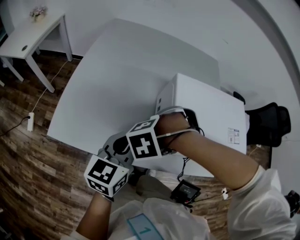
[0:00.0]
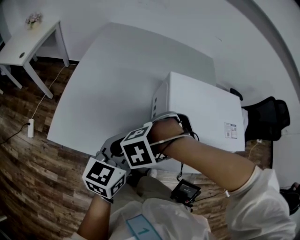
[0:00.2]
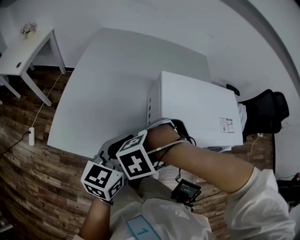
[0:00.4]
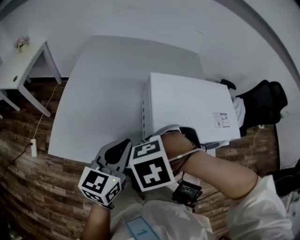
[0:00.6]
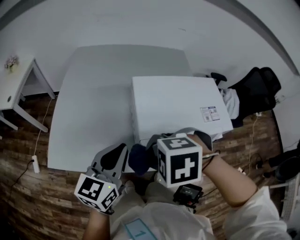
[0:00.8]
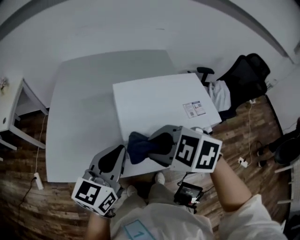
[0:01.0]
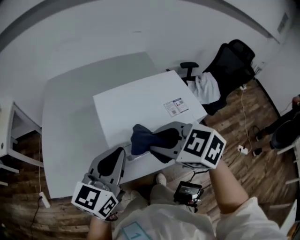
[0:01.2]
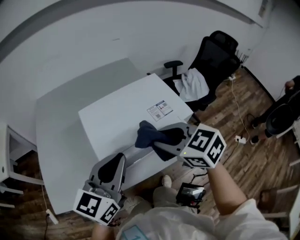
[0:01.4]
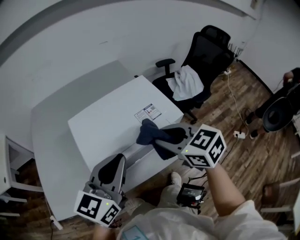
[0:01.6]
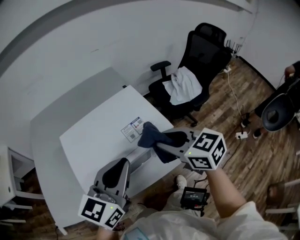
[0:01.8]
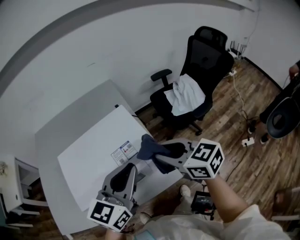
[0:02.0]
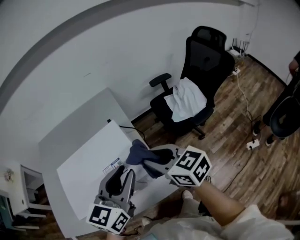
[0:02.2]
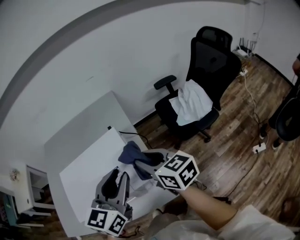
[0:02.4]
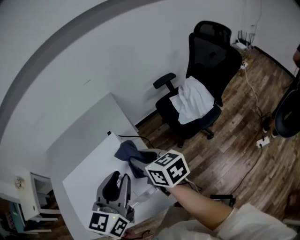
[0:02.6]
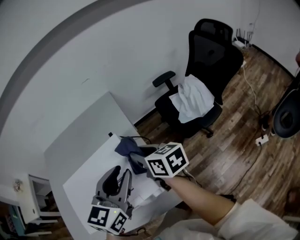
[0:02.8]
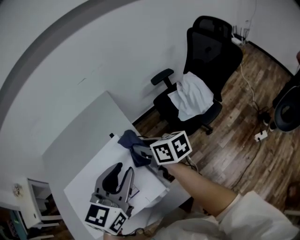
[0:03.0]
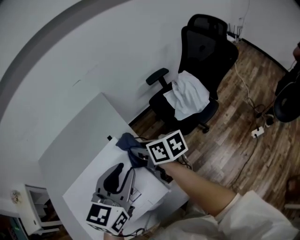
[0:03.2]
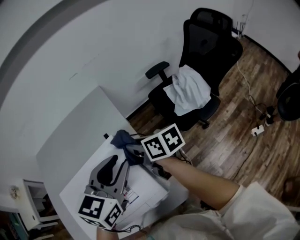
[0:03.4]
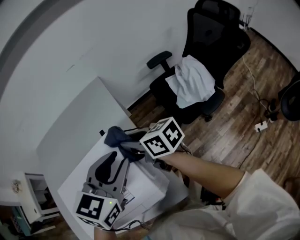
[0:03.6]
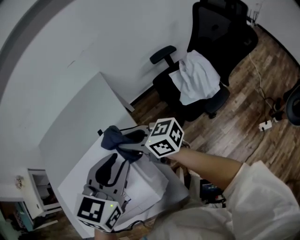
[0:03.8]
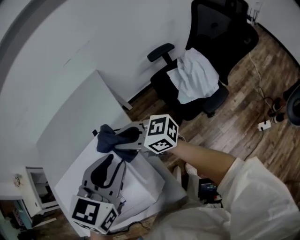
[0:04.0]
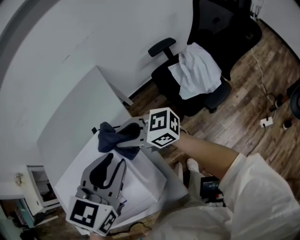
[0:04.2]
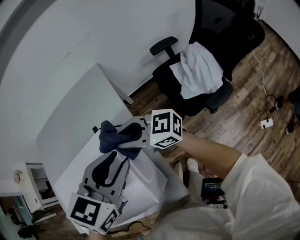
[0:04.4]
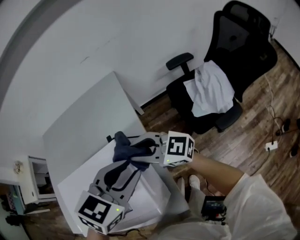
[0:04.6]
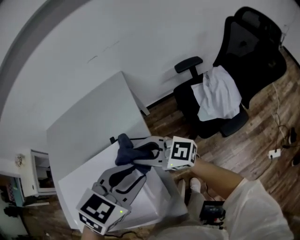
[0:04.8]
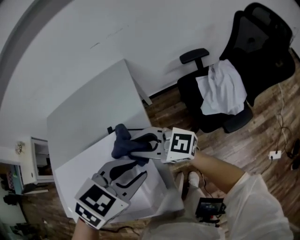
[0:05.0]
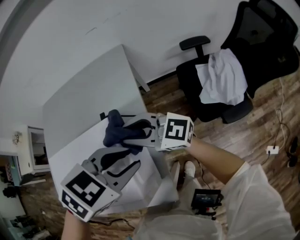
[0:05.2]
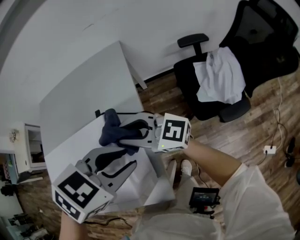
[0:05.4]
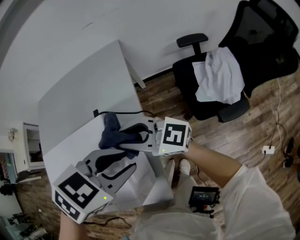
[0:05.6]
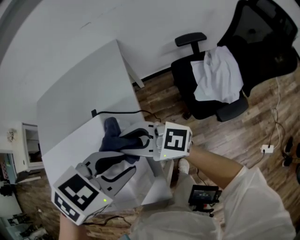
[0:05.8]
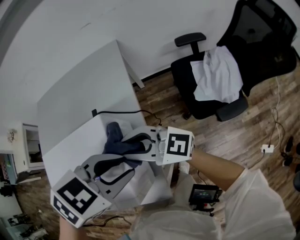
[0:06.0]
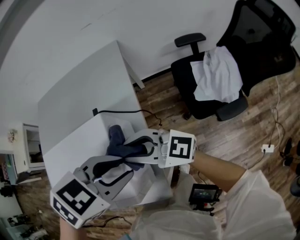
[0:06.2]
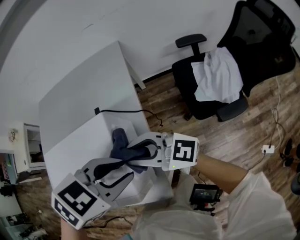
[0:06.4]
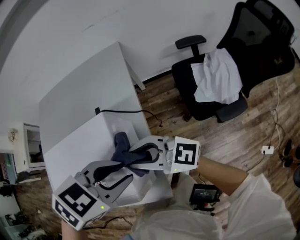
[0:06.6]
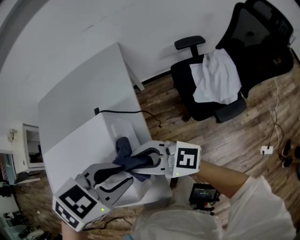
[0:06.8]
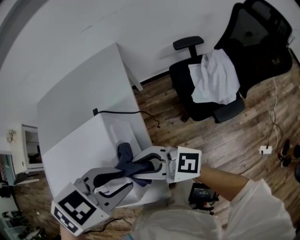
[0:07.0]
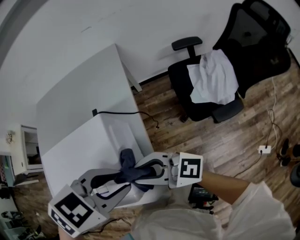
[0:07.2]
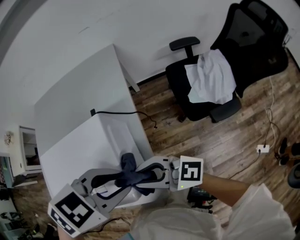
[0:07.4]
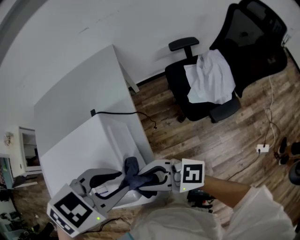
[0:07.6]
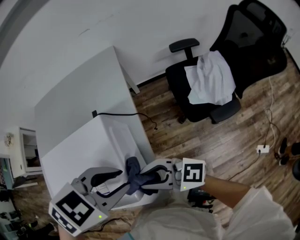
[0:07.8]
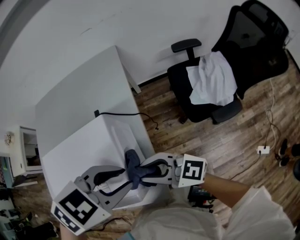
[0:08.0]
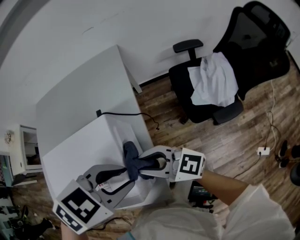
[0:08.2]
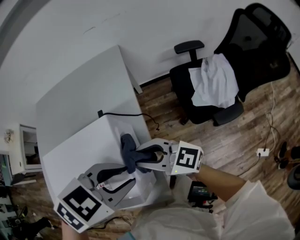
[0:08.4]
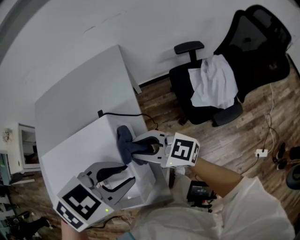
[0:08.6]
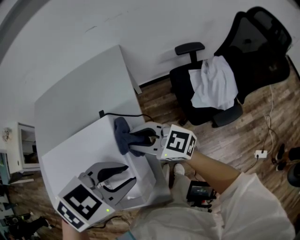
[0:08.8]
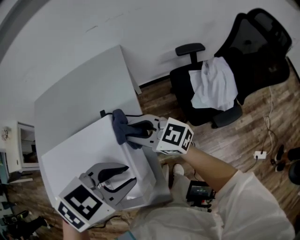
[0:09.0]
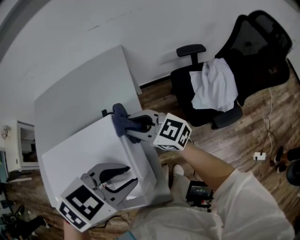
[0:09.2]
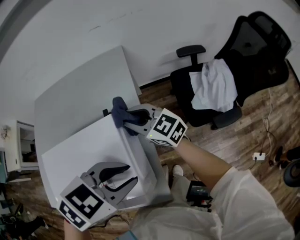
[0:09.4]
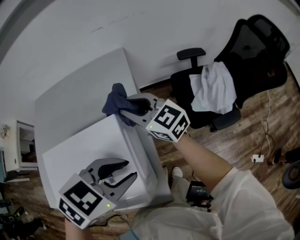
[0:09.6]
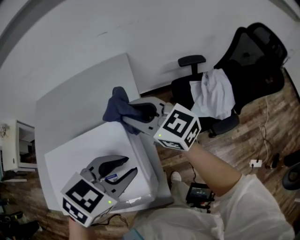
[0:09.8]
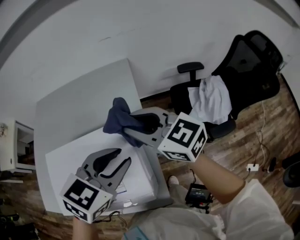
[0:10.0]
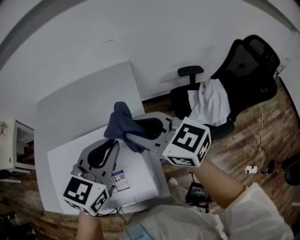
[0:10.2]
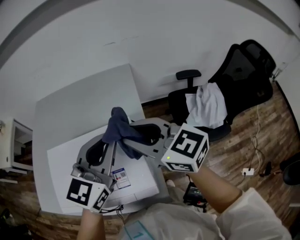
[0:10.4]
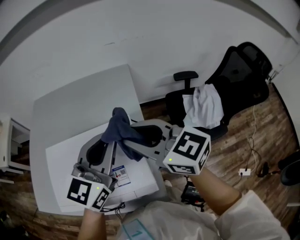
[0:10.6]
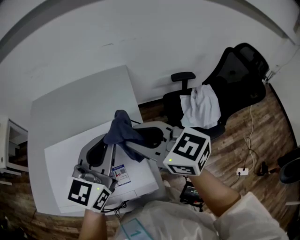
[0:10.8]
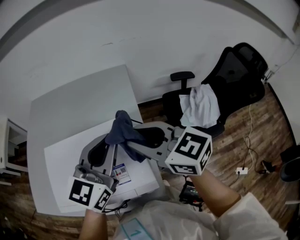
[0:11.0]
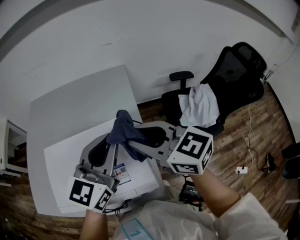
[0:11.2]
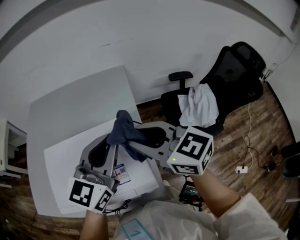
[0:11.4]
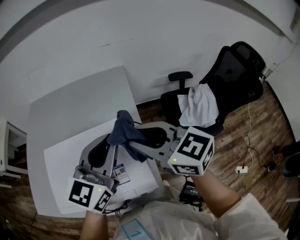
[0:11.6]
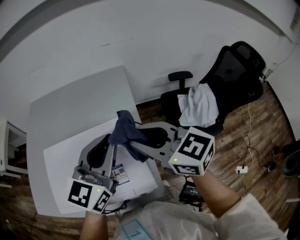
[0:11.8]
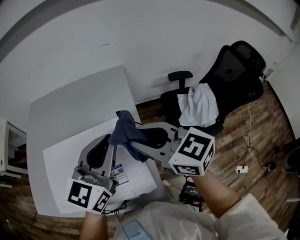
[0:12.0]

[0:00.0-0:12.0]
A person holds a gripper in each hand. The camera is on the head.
0:00.0 to 0:01.6: The right gripper moves approximately 35 cm, and tips its fingers upward by roughly 40 degrees; the left gripper shifts by some 25 cm, and changes its angle by roughly 30 degrees.
0:01.6 to 0:03.0: The left gripper travels to the right and forward by approximately 30 cm, and opens its fingers. The right gripper moves forward and to the right, some 30 cm, and rotates about 40 degrees.
0:03.0 to 0:04.4: The right gripper swivels about 50 degrees, while the left gripper heads downward, forward and to the right, covering approximately 10 cm.
0:04.4 to 0:06.0: The right gripper moves roughly 5 cm. Meanwhile the left gripper shifts by approximately 5 cm, and swivels approximately 30 degrees.
0:06.0 to 0:07.6: The right gripper ends up approximately 10 cm from where it was. The left gripper shifts by roughly 5 cm.
0:07.6 to 0:09.0: The right gripper ends up approximately 20 cm from where it was, and changes its angle by roughly 20 degrees.
0:09.0 to 0:10.4: The right gripper moves upward, approximately 15 cm, while the left gripper shifts by approximately 15 cm, angles its fingers upward, by about 50 degrees, and closes its fingers.
0:10.4 to 0:12.0: The grippers move only a little.

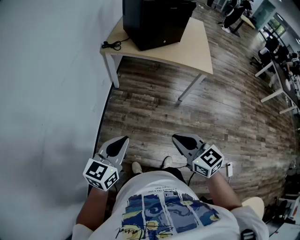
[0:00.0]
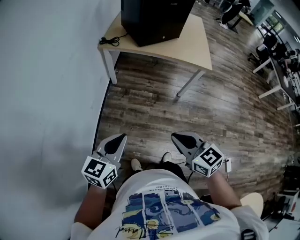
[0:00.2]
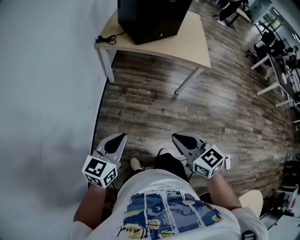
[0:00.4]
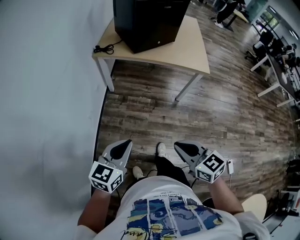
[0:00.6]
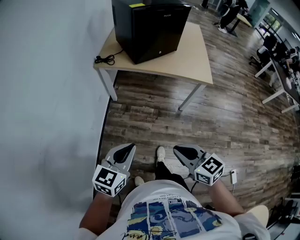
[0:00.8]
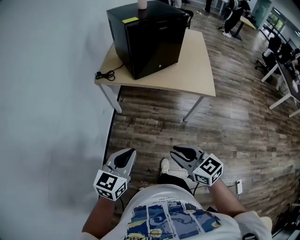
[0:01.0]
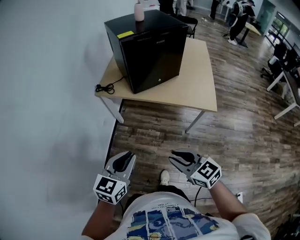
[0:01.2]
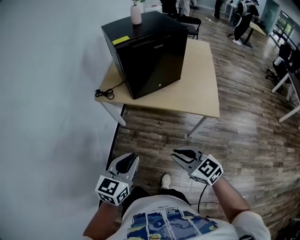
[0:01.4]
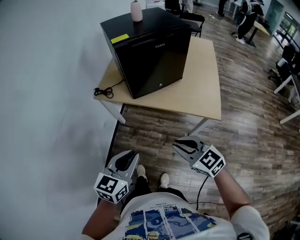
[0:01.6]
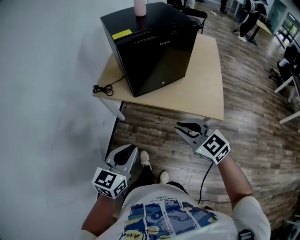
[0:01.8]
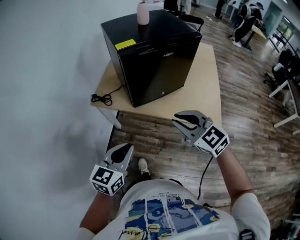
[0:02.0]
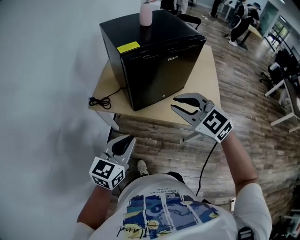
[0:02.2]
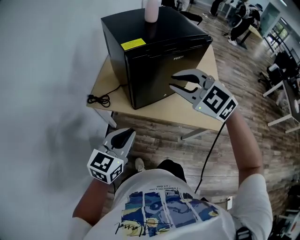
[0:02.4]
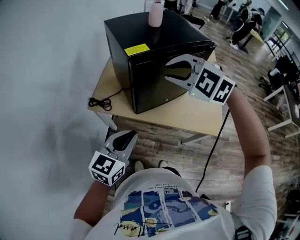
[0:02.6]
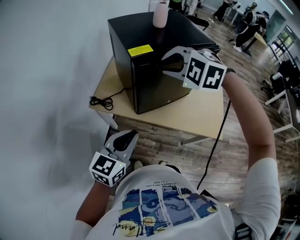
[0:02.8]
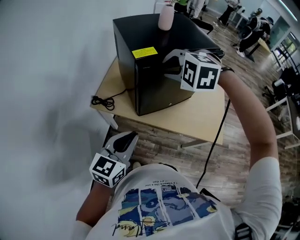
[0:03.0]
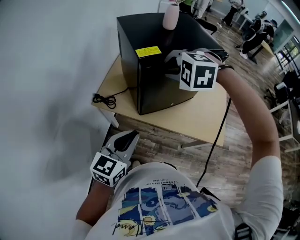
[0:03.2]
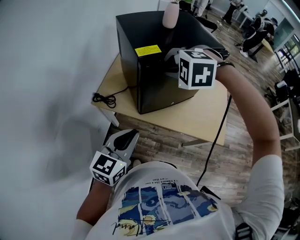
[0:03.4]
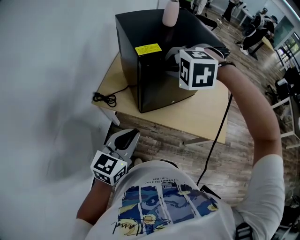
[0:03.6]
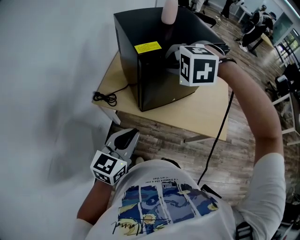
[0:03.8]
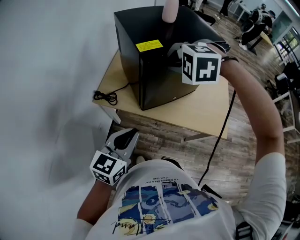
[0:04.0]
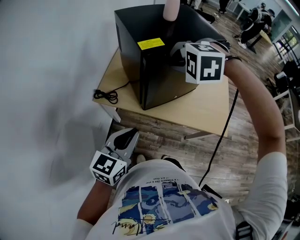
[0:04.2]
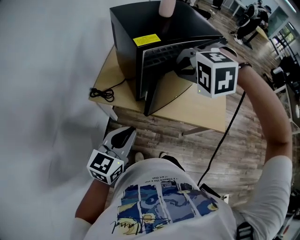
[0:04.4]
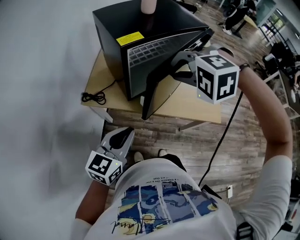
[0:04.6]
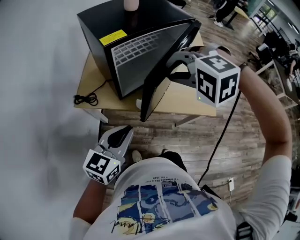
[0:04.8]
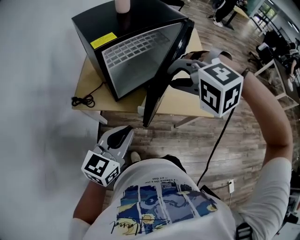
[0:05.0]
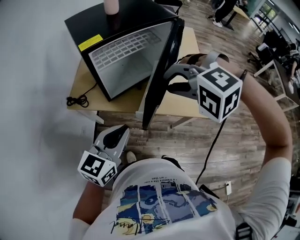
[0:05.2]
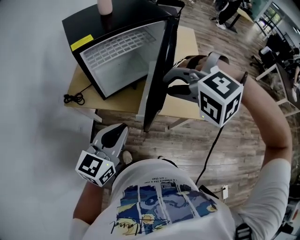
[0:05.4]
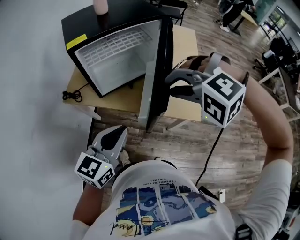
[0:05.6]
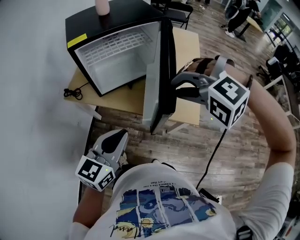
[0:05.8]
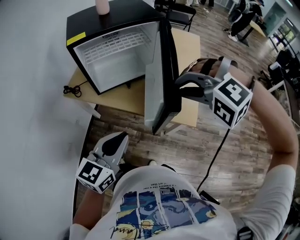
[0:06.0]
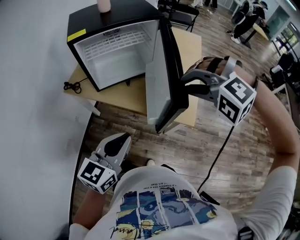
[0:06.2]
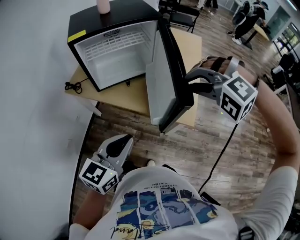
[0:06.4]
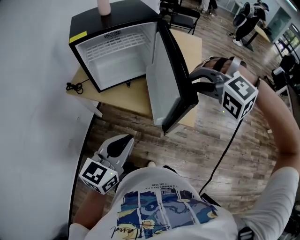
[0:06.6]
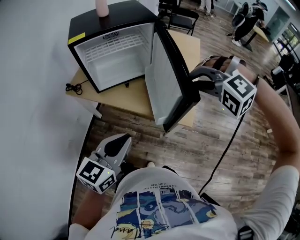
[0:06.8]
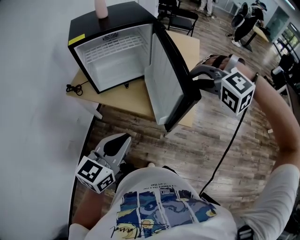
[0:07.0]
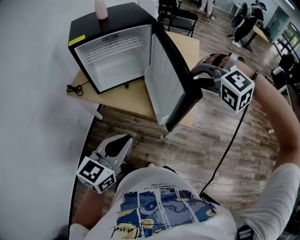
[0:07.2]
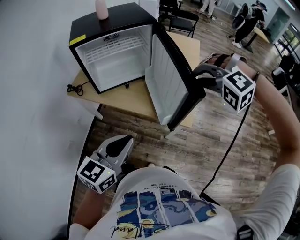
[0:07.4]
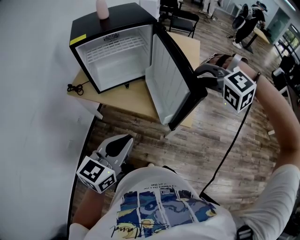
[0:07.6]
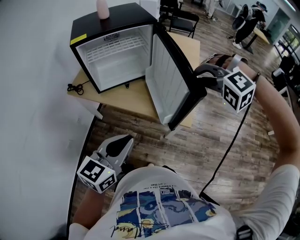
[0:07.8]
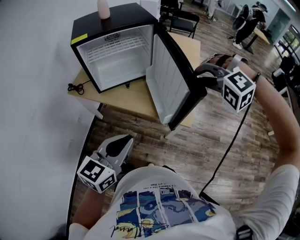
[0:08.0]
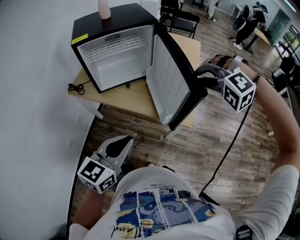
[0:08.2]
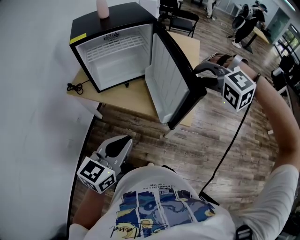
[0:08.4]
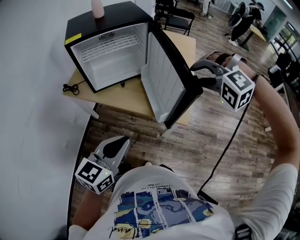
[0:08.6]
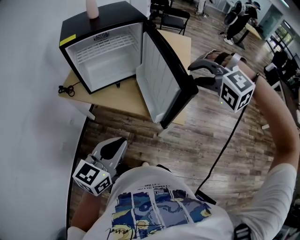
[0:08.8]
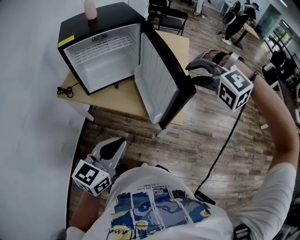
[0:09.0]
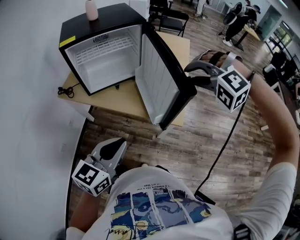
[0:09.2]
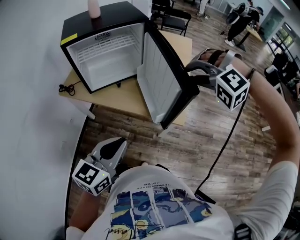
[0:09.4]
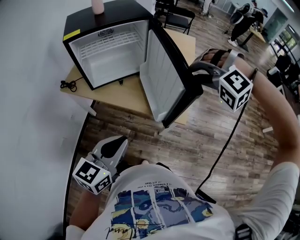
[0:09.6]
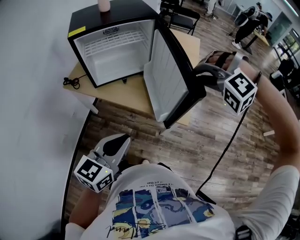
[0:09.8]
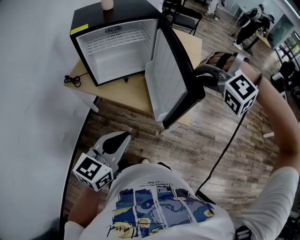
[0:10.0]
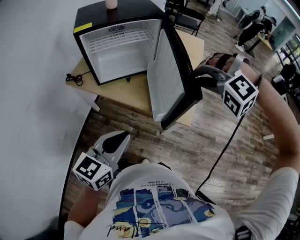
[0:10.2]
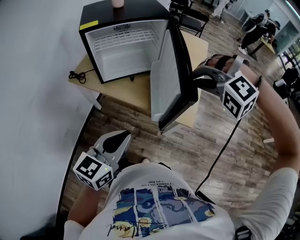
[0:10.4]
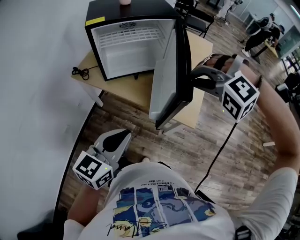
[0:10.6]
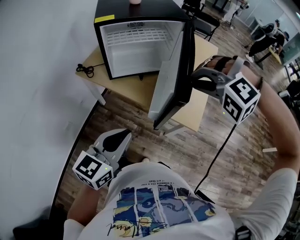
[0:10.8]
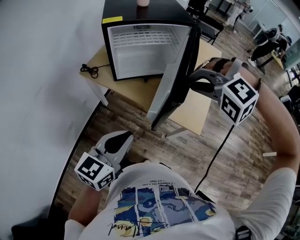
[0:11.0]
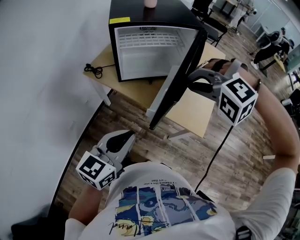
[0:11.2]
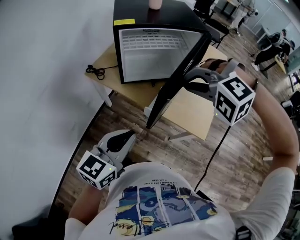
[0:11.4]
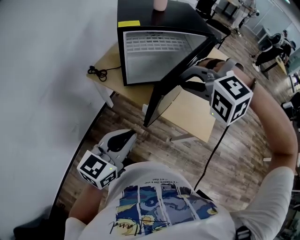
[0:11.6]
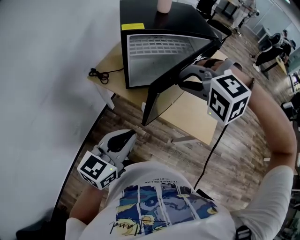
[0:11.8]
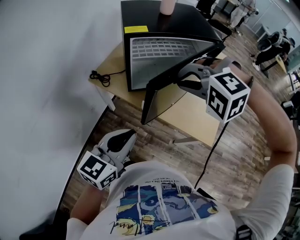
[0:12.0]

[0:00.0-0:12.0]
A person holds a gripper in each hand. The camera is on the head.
0:00.0 to 0:01.6: The grippers both shift forward and to the right by roughly 35 cm.
0:01.6 to 0:03.0: The right gripper goes roughly 40 cm forward, and twists roughly 50 degrees counterclockwise, seen from behind, while the left gripper goes approximately 25 cm forward.
0:03.0 to 0:04.4: The right gripper is displaced backward by about 5 cm.
0:04.4 to 0:06.0: The left gripper travels to the right by some 25 cm. Meanwhile the right gripper travels to the right and backward by about 30 cm, and turns by some 20 degrees.
0:06.0 to 0:07.6: The right gripper goes approximately 10 cm to the right, while the left gripper travels to the right by approximately 5 cm.
0:07.6 to 0:09.0: The right gripper opens up.
0:09.0 to 0:10.4: The right gripper heads to the left, covering some 5 cm, and closes.
0:10.4 to 0:12.0: The right gripper shifts approximately 25 cm to the left; the left gripper goes some 15 cm to the left and forward.
